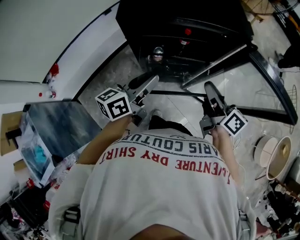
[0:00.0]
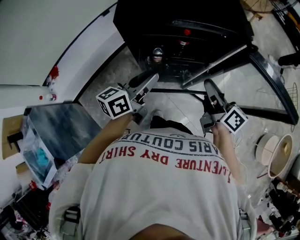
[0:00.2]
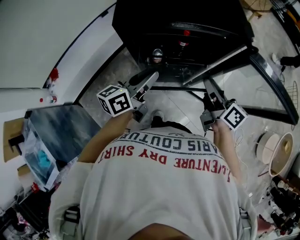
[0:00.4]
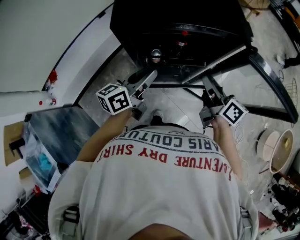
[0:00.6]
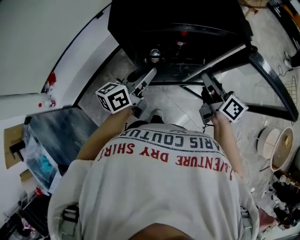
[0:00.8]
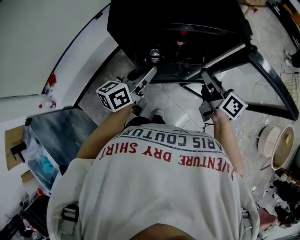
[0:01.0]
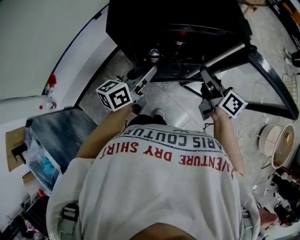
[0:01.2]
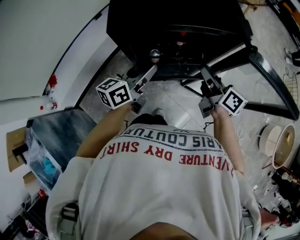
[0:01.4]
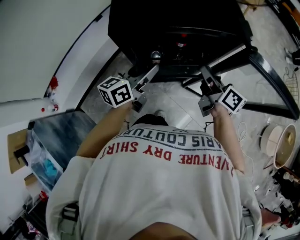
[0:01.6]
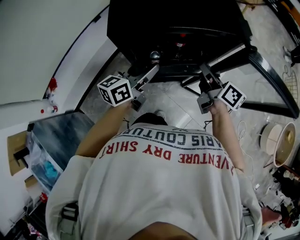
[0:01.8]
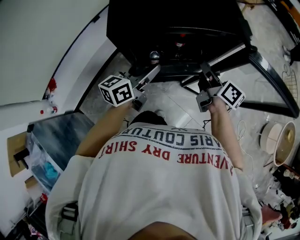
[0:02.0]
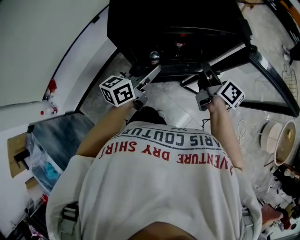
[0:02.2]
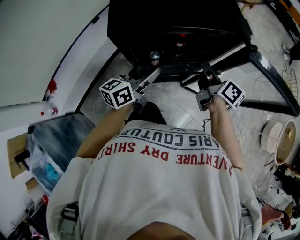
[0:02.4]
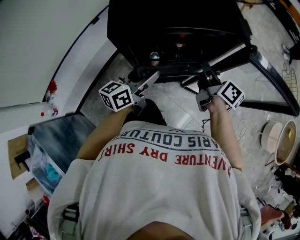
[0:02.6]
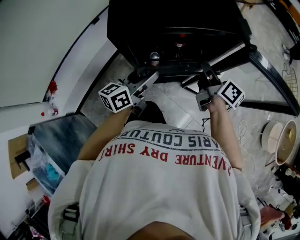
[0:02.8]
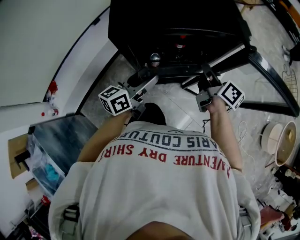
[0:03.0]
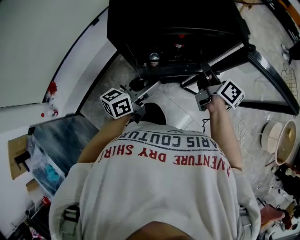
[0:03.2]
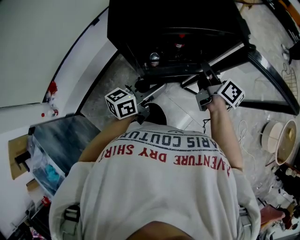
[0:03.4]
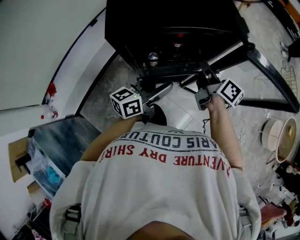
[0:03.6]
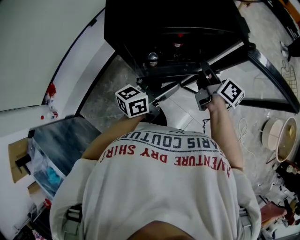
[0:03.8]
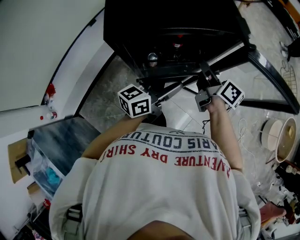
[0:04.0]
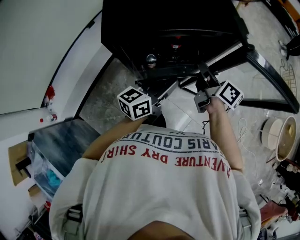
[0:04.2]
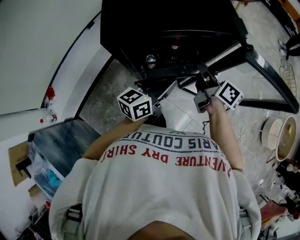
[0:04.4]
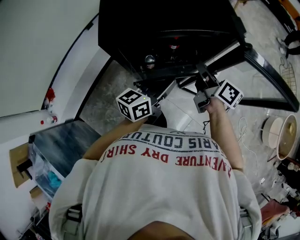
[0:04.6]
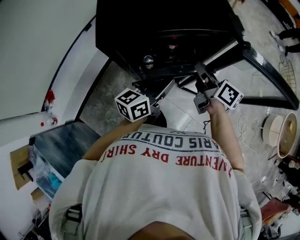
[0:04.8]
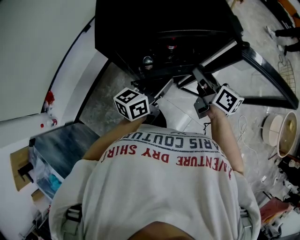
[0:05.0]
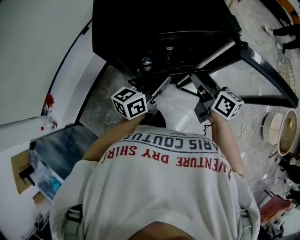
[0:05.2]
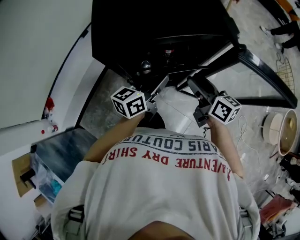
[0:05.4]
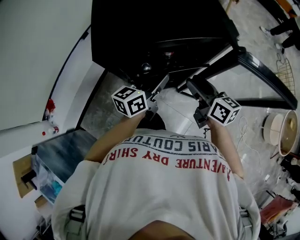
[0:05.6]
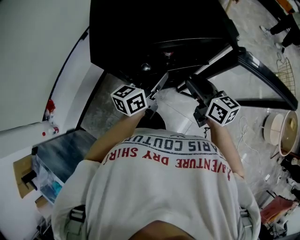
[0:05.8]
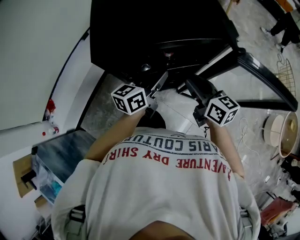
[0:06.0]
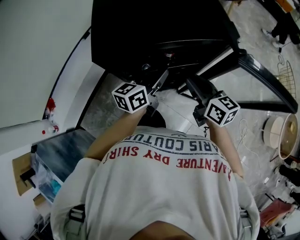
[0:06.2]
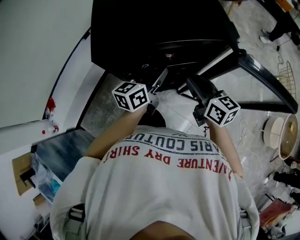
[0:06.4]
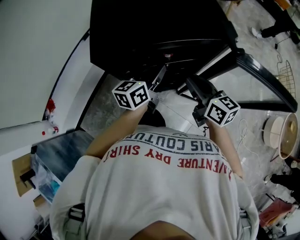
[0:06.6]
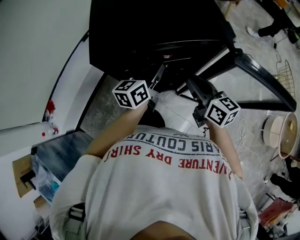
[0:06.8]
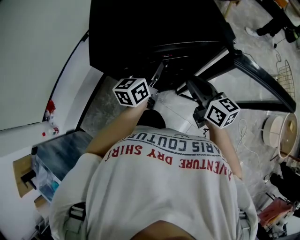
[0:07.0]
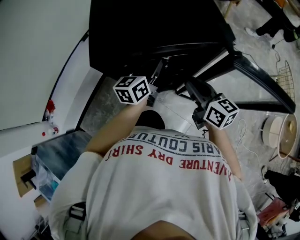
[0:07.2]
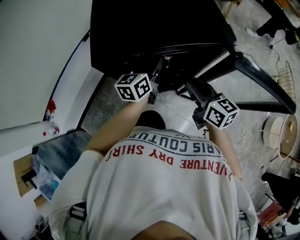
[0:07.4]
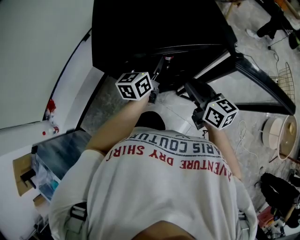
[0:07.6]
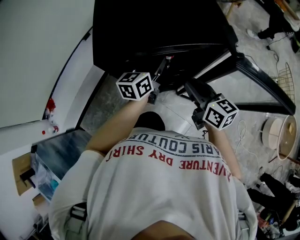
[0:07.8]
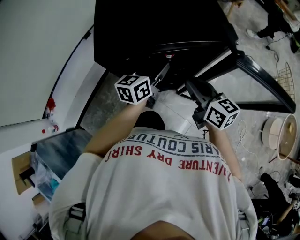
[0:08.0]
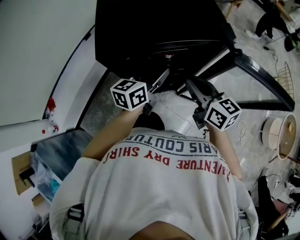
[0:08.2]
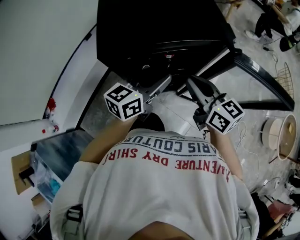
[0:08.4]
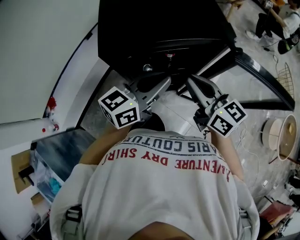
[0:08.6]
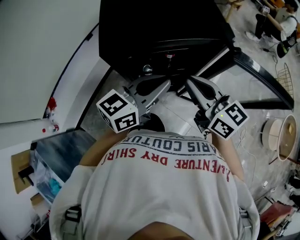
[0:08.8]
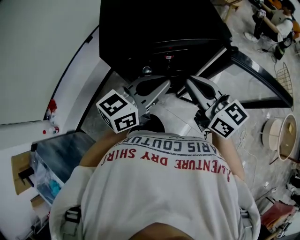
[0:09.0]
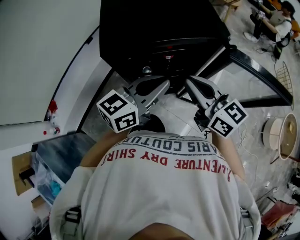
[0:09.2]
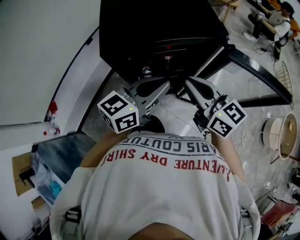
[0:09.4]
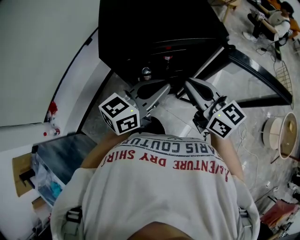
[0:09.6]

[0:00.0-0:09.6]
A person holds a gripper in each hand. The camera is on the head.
0:00.0 to 0:01.6: The two grippers go some 10 cm forward.
0:01.6 to 0:03.2: The grippers make only small movements.
0:03.2 to 0:04.8: The left gripper moves to the right, about 5 cm, and closes its fingers.
0:04.8 to 0:06.4: The right gripper swivels roughly 20 degrees. Meanwhile the left gripper goes roughly 10 cm forward.
0:06.4 to 0:08.0: The grippers stay close to where they were, moving slightly.
0:08.0 to 0:09.6: The right gripper moves upward, roughly 10 cm; the left gripper is displaced backward and upward by approximately 15 cm, rotates roughly 20 degrees, and closes up.

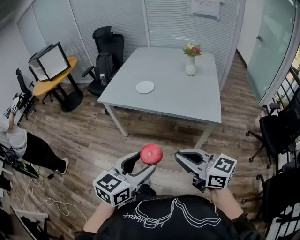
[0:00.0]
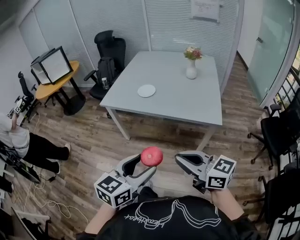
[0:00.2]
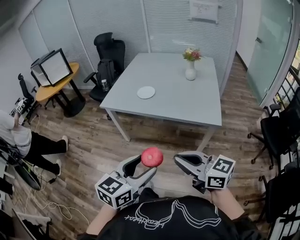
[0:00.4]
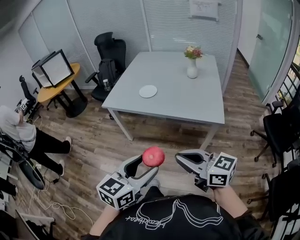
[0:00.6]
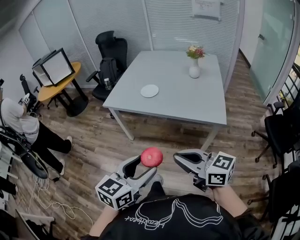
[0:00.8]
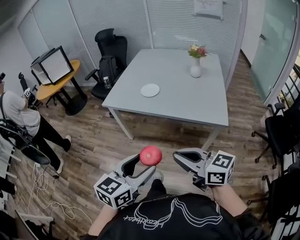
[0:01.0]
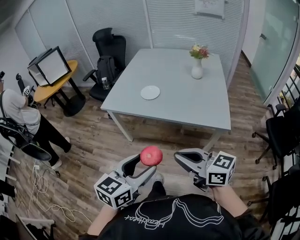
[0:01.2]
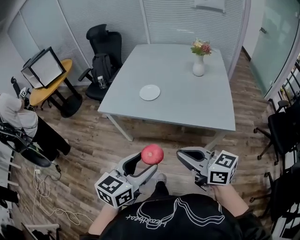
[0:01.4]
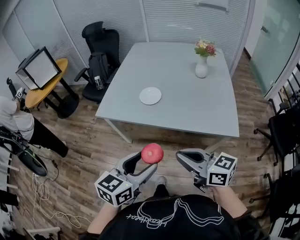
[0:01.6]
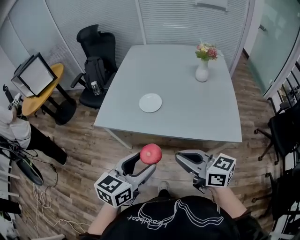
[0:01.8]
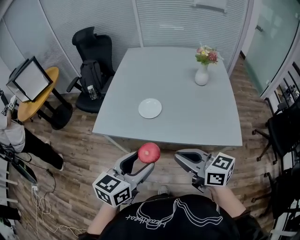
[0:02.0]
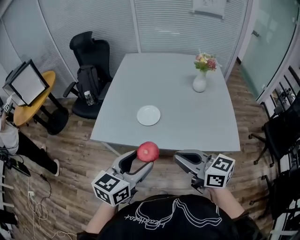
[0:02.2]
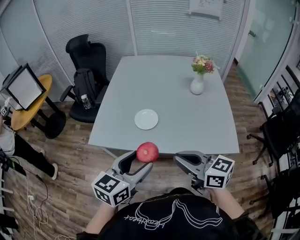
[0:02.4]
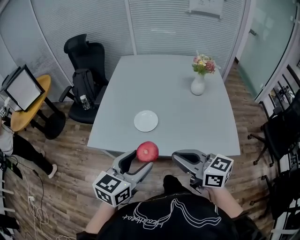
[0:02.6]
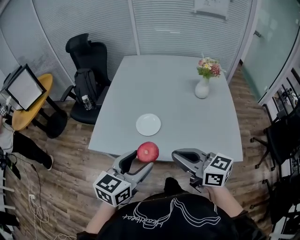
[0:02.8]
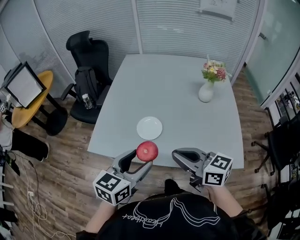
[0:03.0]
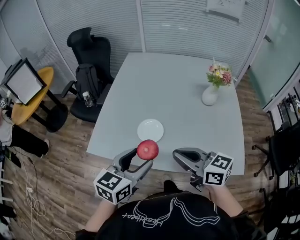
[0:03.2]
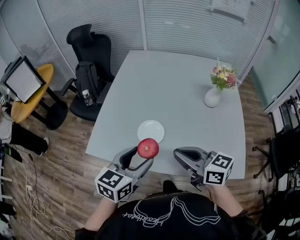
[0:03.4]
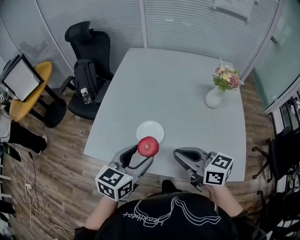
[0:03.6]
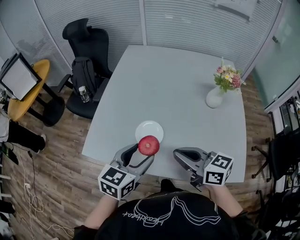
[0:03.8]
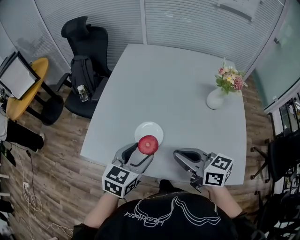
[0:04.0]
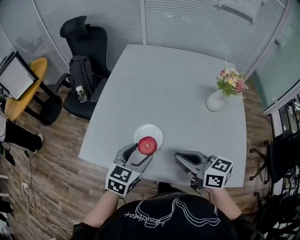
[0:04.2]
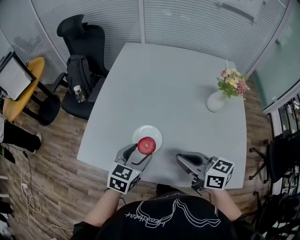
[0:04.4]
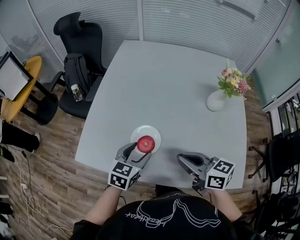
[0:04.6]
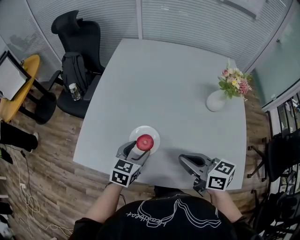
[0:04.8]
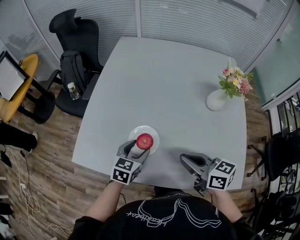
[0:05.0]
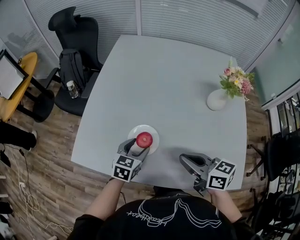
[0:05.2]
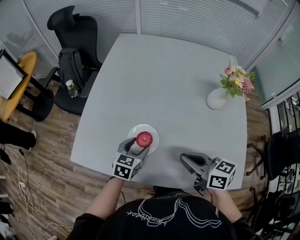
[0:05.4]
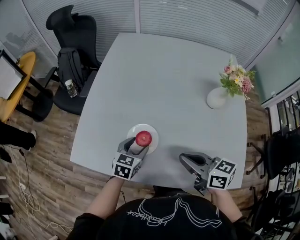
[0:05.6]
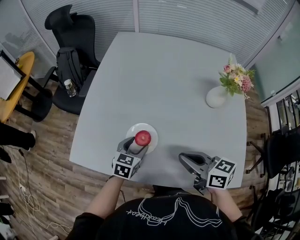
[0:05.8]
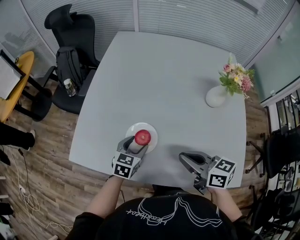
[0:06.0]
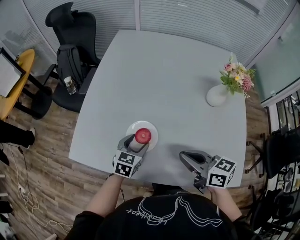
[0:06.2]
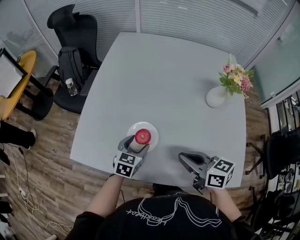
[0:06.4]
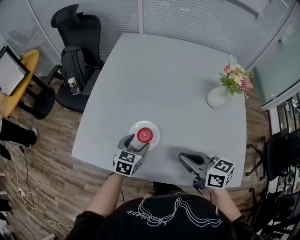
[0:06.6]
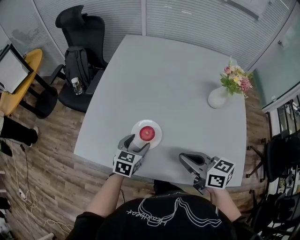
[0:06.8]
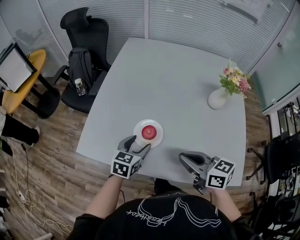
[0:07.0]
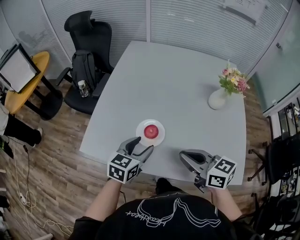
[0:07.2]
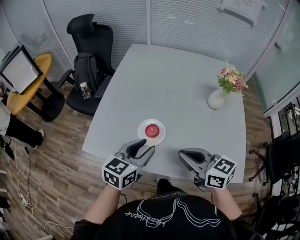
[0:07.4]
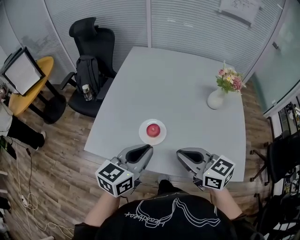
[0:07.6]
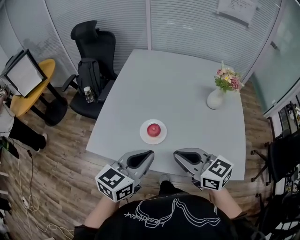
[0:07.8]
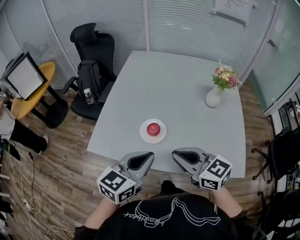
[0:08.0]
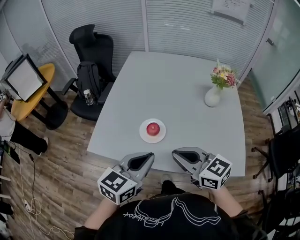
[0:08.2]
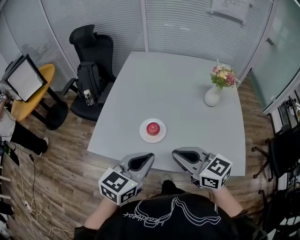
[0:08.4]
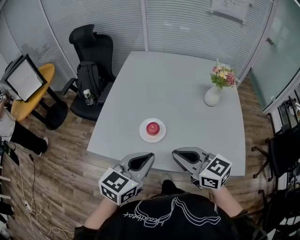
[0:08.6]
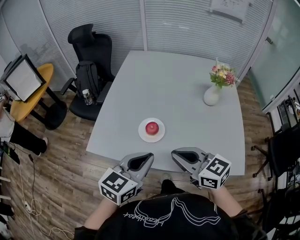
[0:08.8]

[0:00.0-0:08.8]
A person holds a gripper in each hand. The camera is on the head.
0:00.0 to 0:01.4: The two grippers go roughly 15 cm forward.
0:01.4 to 0:03.0: The two grippers go approximately 30 cm forward.
0:03.0 to 0:04.4: The two grippers go some 15 cm forward and downward.
0:04.4 to 0:05.8: The left gripper shifts roughly 10 cm downward and forward, while the right gripper ends up roughly 5 cm from where it was.
0:05.8 to 0:07.4: The right gripper moves upward, backward and to the left, about 10 cm. The left gripper moves upward and backward, approximately 20 cm.
0:07.4 to 0:08.8: The right gripper ends up roughly 5 cm from where it was; the left gripper shifts approximately 10 cm backward and upward, and closes up.

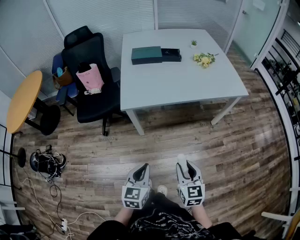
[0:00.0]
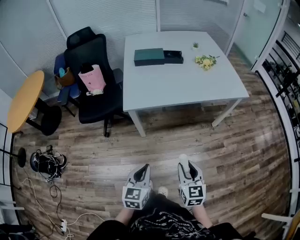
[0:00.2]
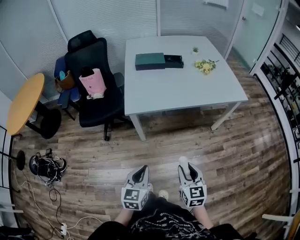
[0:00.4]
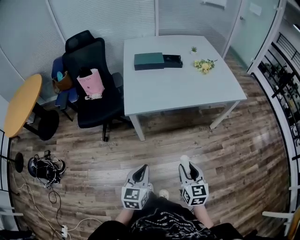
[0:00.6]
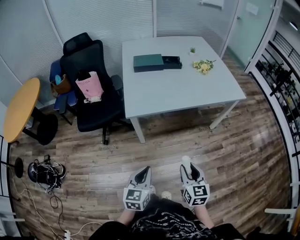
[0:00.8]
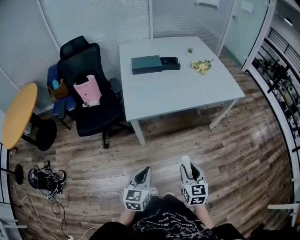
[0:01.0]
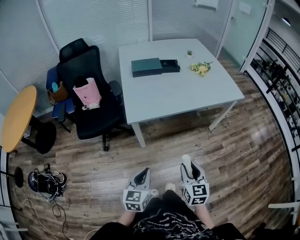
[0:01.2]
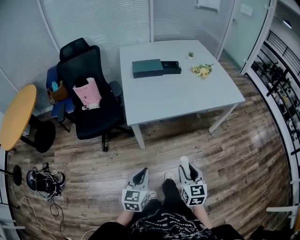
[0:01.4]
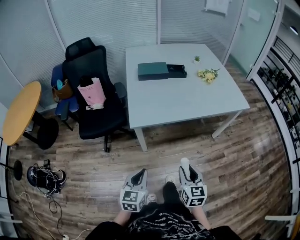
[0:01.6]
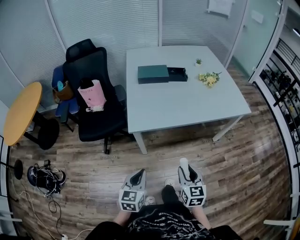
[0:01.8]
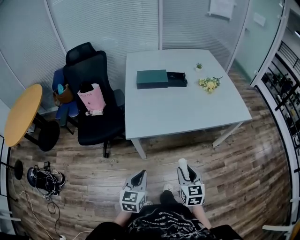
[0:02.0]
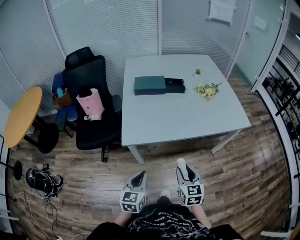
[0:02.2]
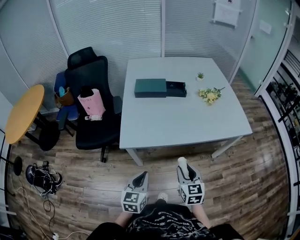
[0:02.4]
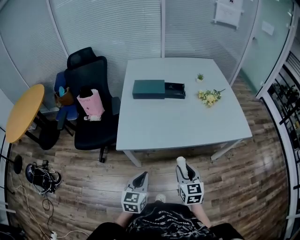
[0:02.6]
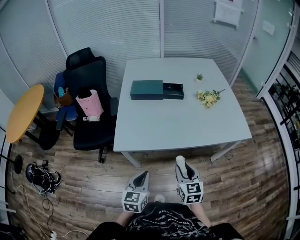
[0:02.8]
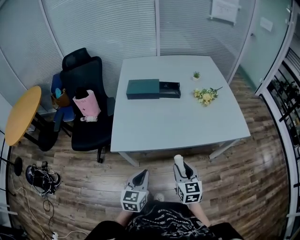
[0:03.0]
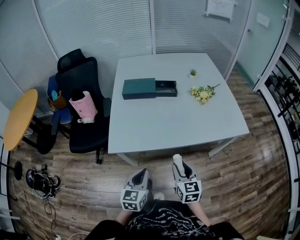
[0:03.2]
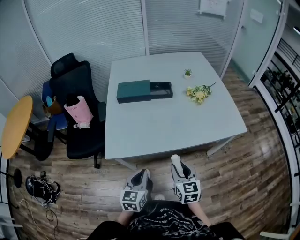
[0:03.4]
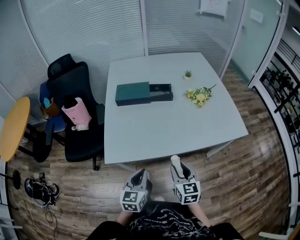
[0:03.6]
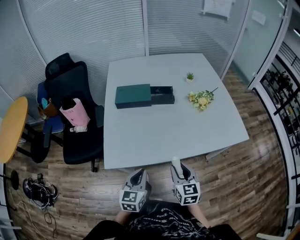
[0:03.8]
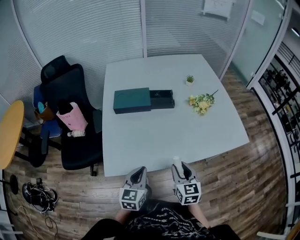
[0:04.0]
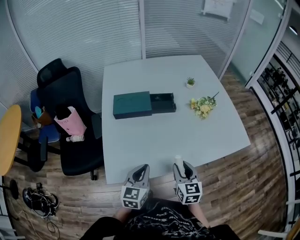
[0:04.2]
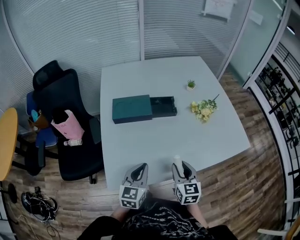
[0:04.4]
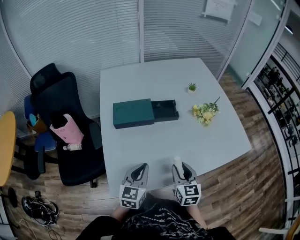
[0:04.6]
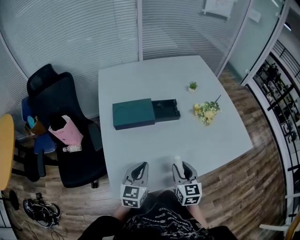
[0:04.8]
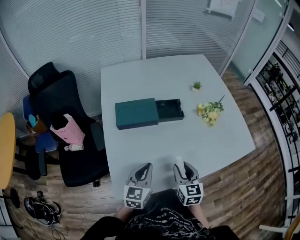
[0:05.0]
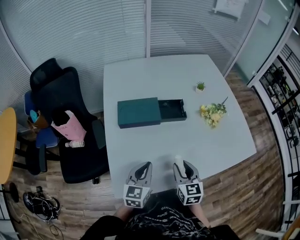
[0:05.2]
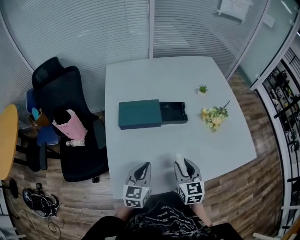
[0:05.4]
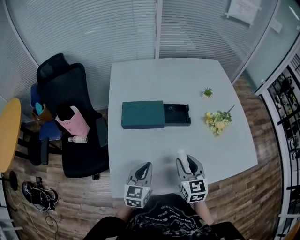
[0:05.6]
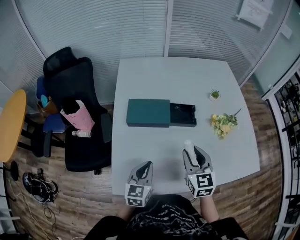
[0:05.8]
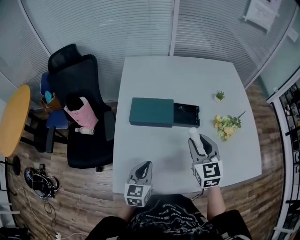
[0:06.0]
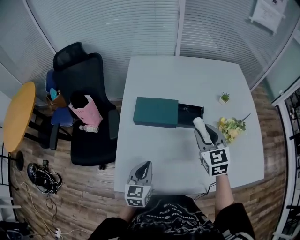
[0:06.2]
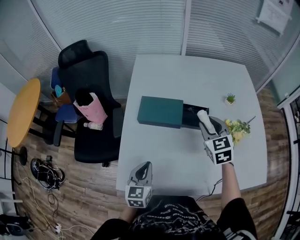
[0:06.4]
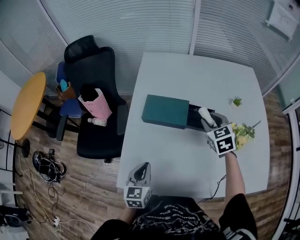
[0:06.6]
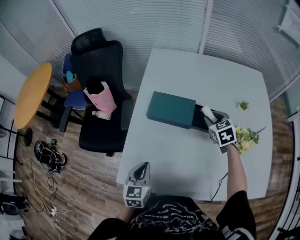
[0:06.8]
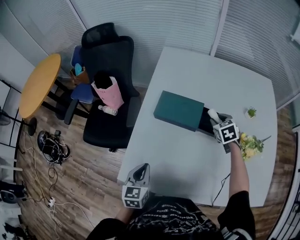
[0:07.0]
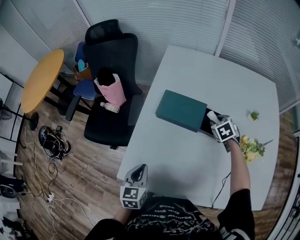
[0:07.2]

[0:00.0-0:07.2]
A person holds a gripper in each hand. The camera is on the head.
0:00.0 to 0:01.4: Both grippers move to the left, approximately 10 cm.
0:01.4 to 0:02.8: The grippers both shift forward and to the right by about 25 cm.
0:02.8 to 0:04.4: Both grippers move forward, some 25 cm.
0:04.4 to 0:05.8: The left gripper heads forward, covering about 10 cm; the right gripper goes roughly 15 cm forward and upward.
0:05.8 to 0:07.2: The right gripper goes approximately 30 cm forward and downward, and tips its fingers downward by approximately 40 degrees; the left gripper travels to the left by about 5 cm, and changes its angle by some 30 degrees.
